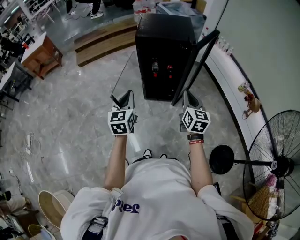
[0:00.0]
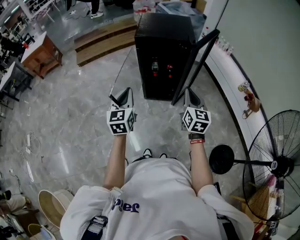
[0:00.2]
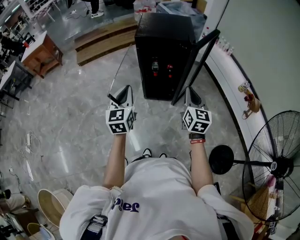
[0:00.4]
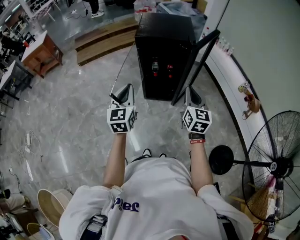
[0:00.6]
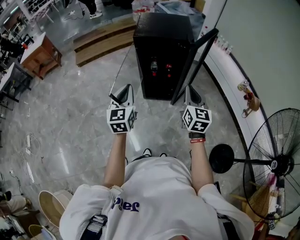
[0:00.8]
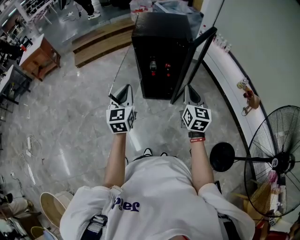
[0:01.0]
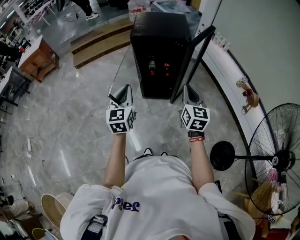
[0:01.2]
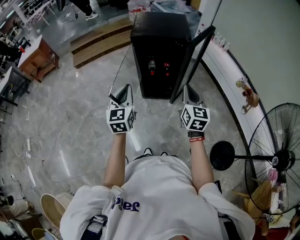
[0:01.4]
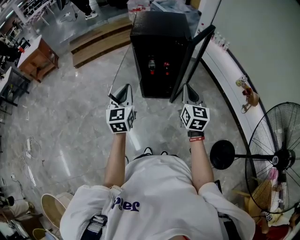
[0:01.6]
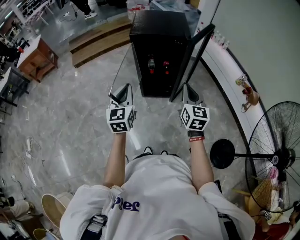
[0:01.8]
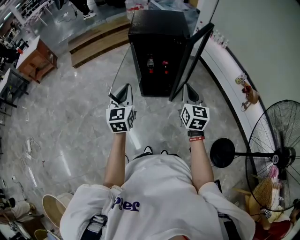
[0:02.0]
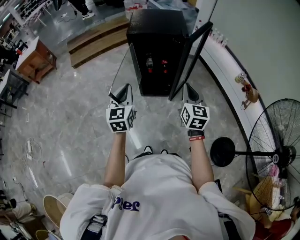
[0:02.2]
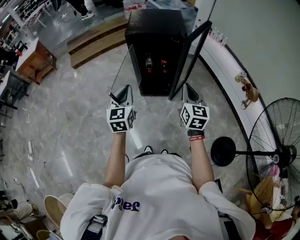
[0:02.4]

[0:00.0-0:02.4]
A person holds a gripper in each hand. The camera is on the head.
0:00.0 to 0:02.4: There are only small adjustments of the grippers.

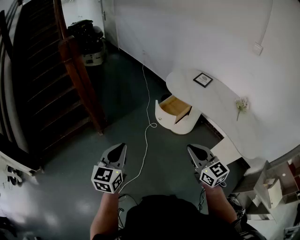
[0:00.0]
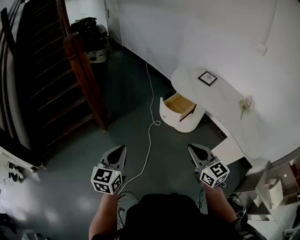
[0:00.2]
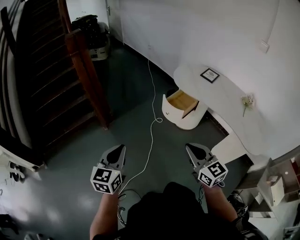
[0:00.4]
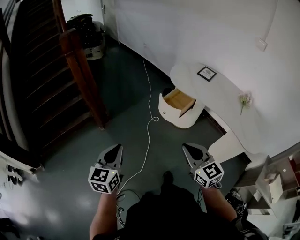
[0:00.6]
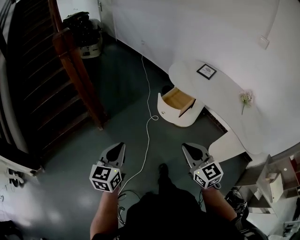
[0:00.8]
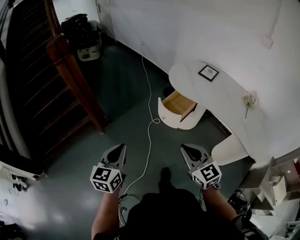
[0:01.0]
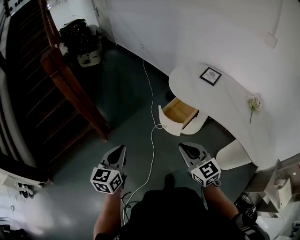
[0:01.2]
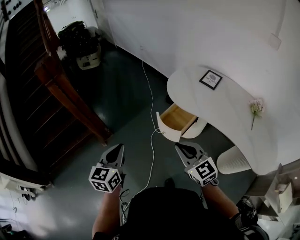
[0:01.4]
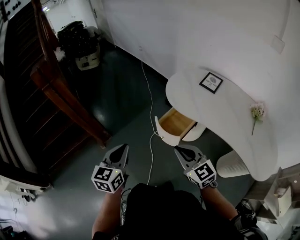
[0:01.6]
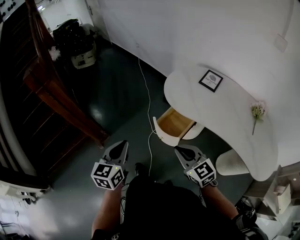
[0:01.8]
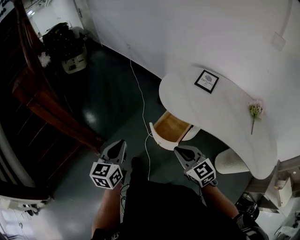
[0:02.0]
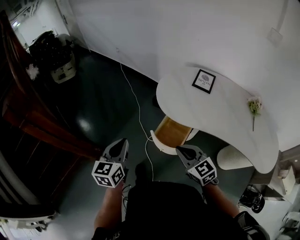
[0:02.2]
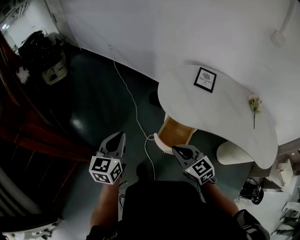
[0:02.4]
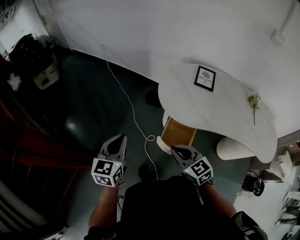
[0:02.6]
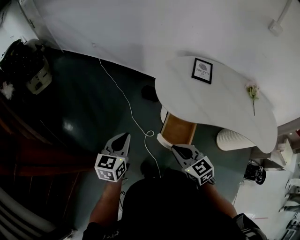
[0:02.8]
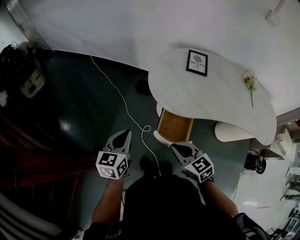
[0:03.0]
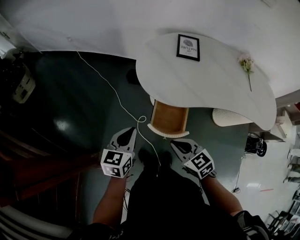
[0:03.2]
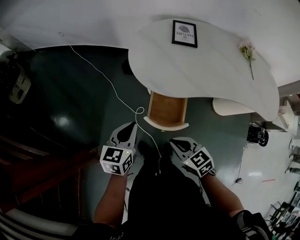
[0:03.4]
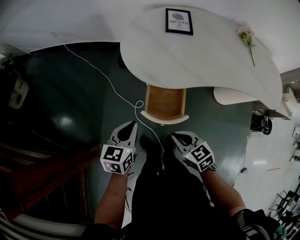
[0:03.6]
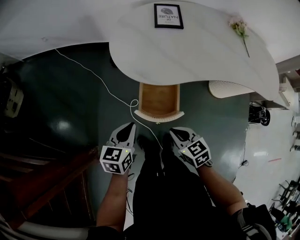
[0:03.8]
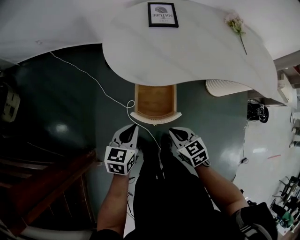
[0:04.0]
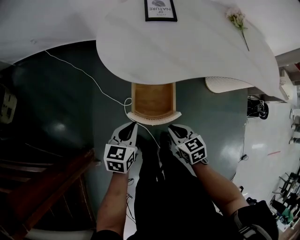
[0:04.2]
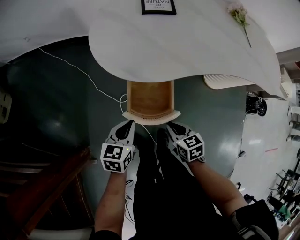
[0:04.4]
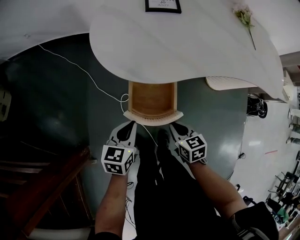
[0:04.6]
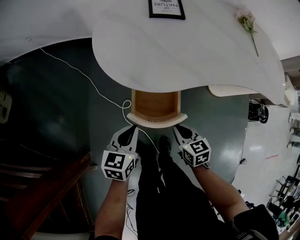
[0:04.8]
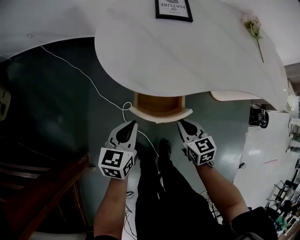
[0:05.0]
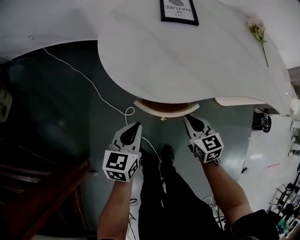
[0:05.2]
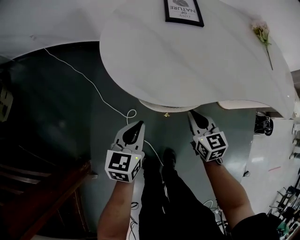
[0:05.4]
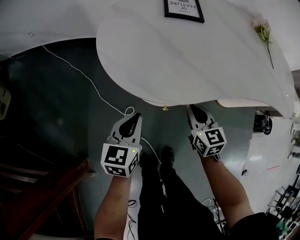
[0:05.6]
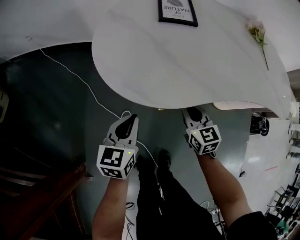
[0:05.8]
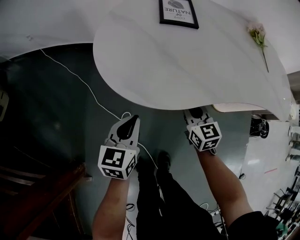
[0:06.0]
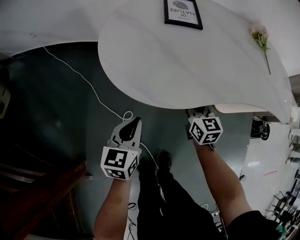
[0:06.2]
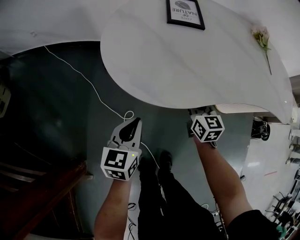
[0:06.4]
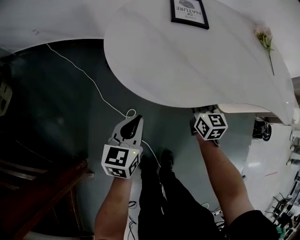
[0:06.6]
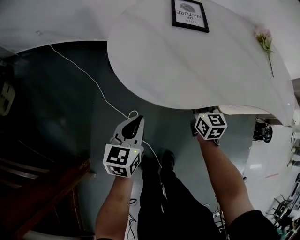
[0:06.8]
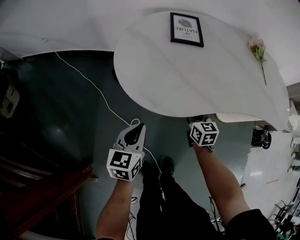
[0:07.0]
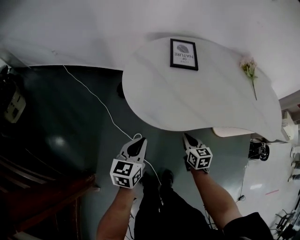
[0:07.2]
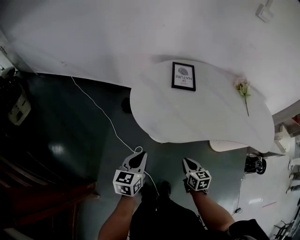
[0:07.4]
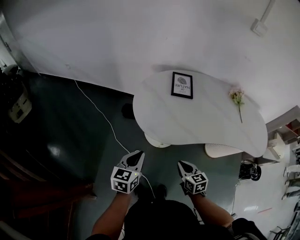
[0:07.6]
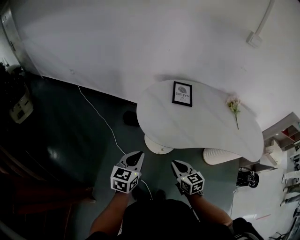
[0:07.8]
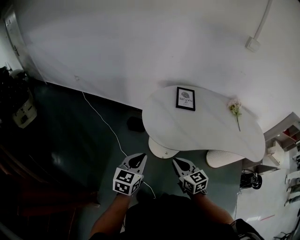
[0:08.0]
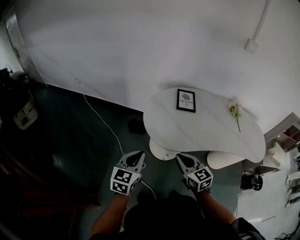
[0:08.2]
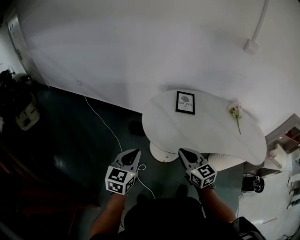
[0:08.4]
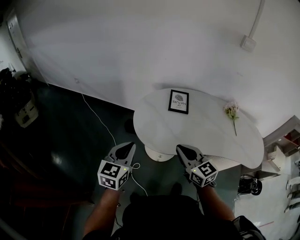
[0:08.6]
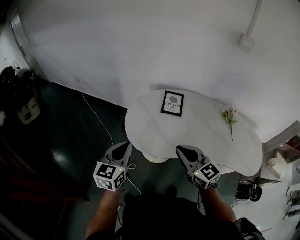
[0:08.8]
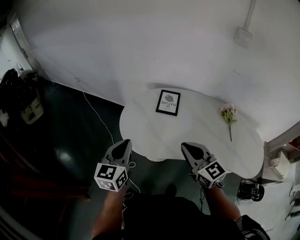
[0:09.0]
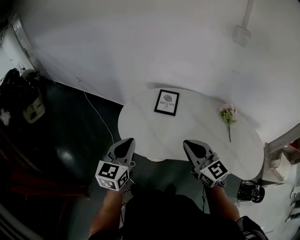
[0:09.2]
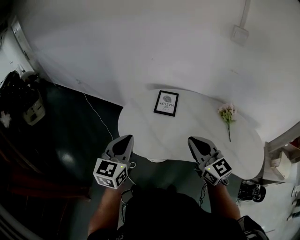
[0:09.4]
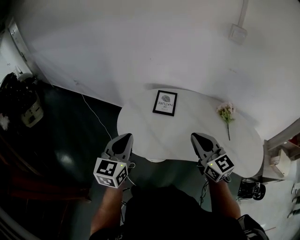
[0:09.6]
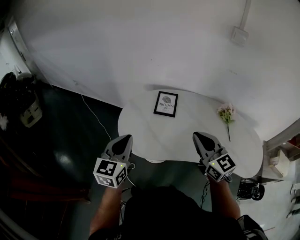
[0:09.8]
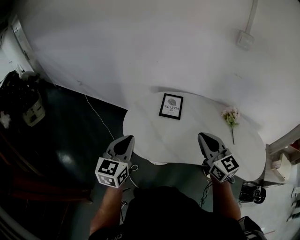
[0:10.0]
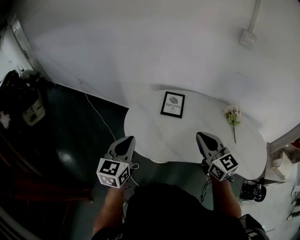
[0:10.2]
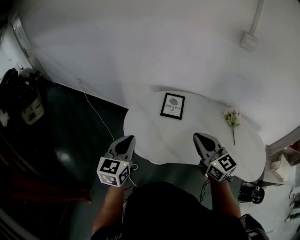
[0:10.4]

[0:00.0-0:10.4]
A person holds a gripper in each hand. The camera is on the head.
0:00.0 to 0:01.4: Both grippers move forward, about 25 cm.
0:01.4 to 0:03.0: The right gripper ends up some 30 cm from where it was, and rotates approximately 40 degrees. Meanwhile the left gripper ends up approximately 40 cm from where it was, and rotates some 30 degrees.
0:03.0 to 0:04.4: The grippers both shift downward and to the right by roughly 30 cm. The left gripper swivels about 30 degrees. The right gripper rotates approximately 40 degrees.
0:04.4 to 0:06.0: The left gripper is displaced forward by some 10 cm. Meanwhile the right gripper is displaced forward by some 20 cm, and changes its angle by some 30 degrees.
0:06.0 to 0:07.4: The right gripper goes some 15 cm backward and upward. The left gripper moves upward, some 15 cm.
0:07.4 to 0:09.0: The right gripper heads upward, covering approximately 35 cm, and tips its fingers upward by some 30 degrees. The left gripper shifts roughly 20 cm upward, and changes its angle by some 20 degrees.
0:09.0 to 0:10.4: The right gripper ends up about 5 cm from where it was.

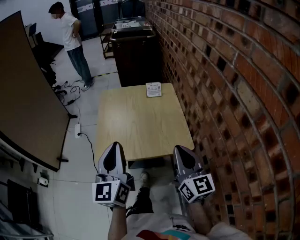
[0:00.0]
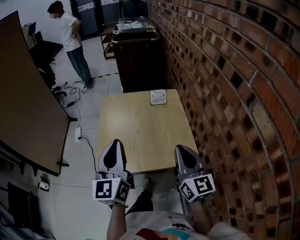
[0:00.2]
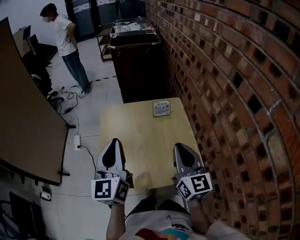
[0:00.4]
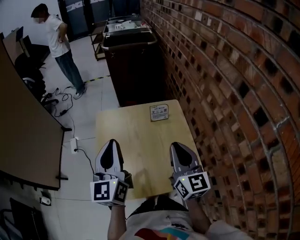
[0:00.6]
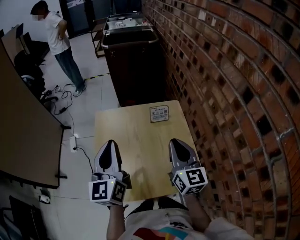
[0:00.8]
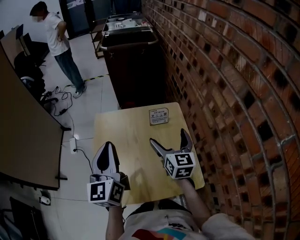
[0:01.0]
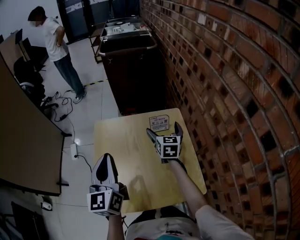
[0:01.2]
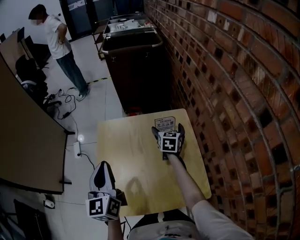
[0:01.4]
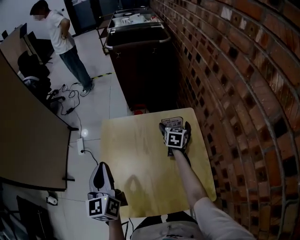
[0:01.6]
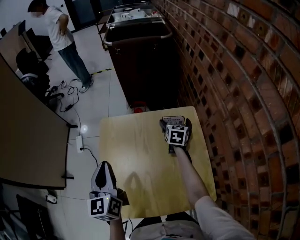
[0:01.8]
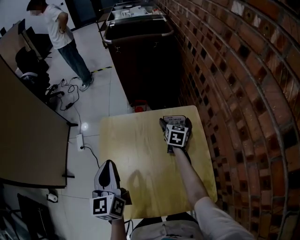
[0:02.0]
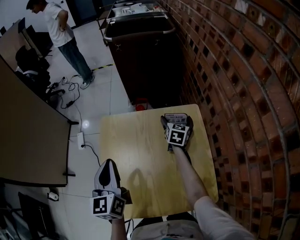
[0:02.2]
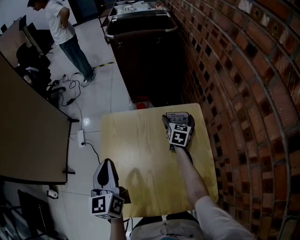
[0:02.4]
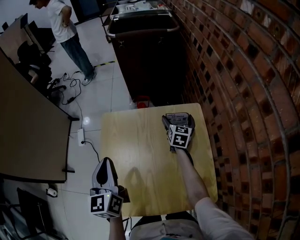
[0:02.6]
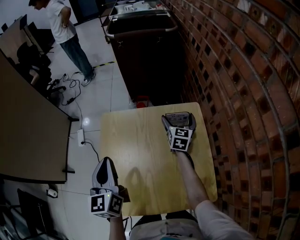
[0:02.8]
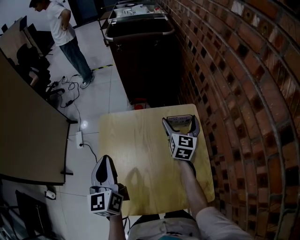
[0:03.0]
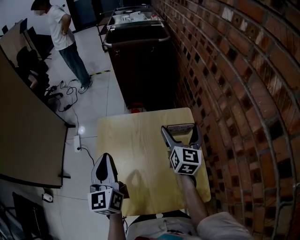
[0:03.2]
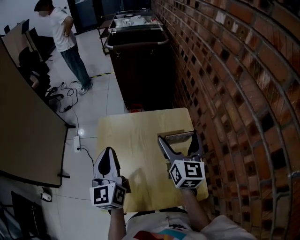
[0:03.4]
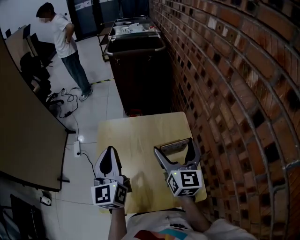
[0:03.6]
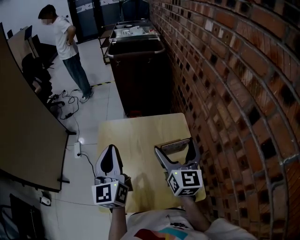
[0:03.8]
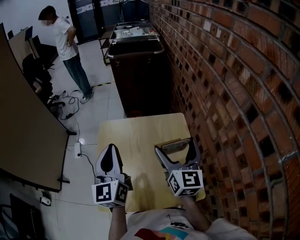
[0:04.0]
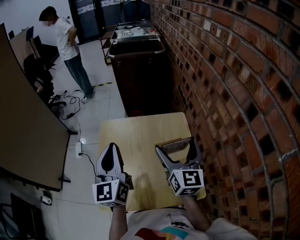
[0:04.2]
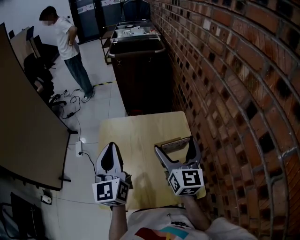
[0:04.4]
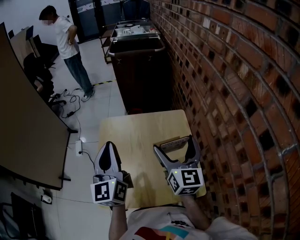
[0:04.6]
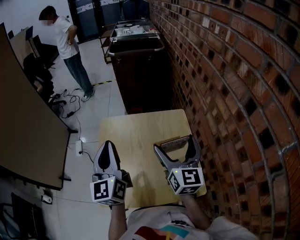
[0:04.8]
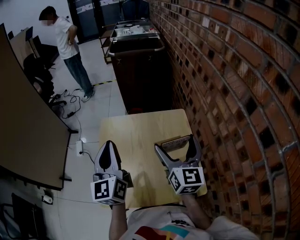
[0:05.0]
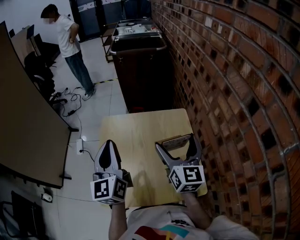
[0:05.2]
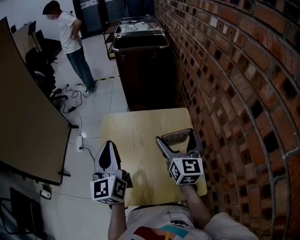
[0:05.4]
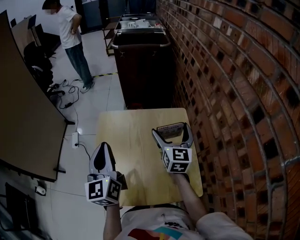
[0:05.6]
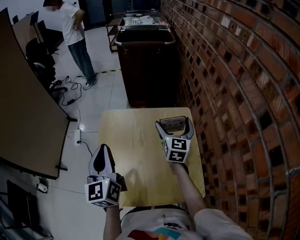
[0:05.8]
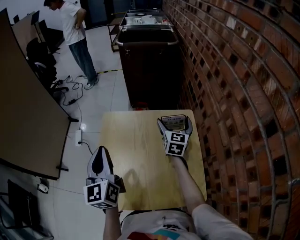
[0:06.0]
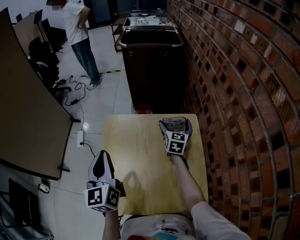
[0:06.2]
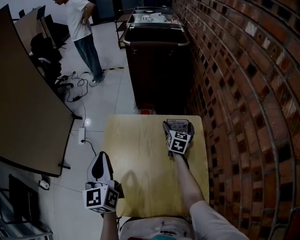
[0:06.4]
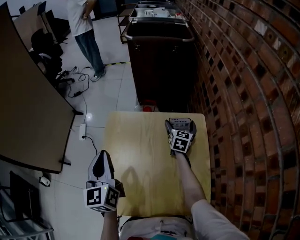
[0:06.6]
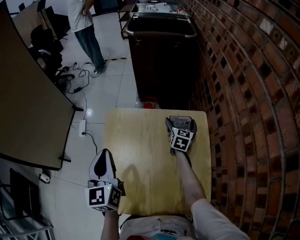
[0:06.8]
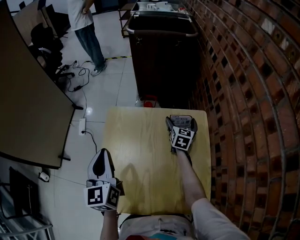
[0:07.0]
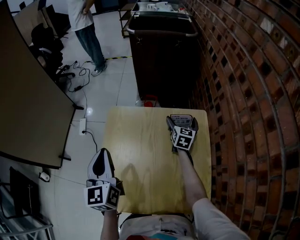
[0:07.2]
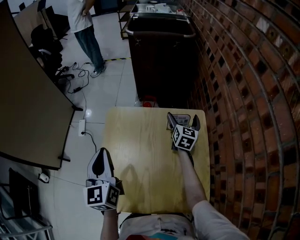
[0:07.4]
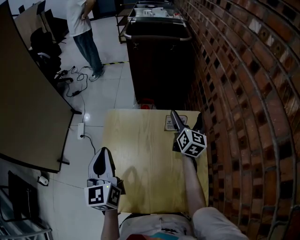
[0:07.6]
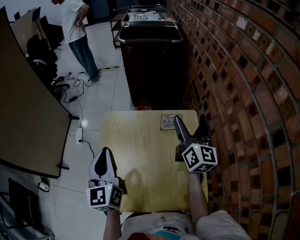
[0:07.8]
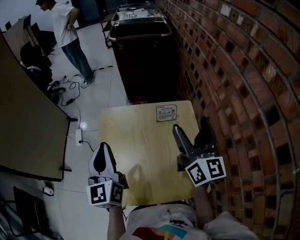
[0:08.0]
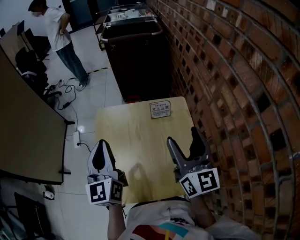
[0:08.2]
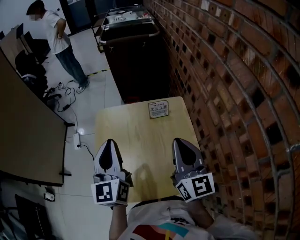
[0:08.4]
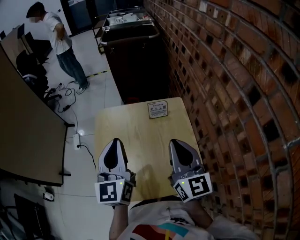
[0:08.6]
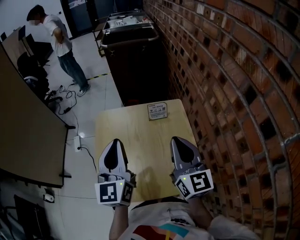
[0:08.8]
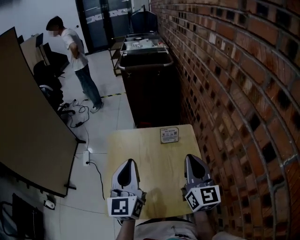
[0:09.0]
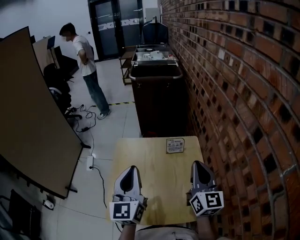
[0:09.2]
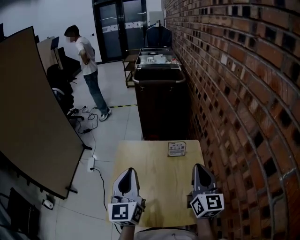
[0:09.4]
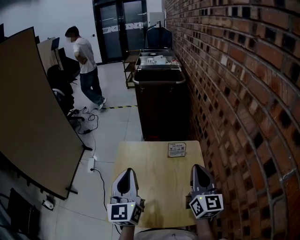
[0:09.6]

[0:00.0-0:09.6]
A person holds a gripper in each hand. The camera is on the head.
0:00.0 to 0:01.6: The right gripper heads forward, covering approximately 60 cm, tips its fingers downward by approximately 40 degrees, and opens up. Meanwhile the left gripper heads forward, covering some 30 cm.
0:01.6 to 0:03.2: The right gripper shifts approximately 20 cm upward and backward, and changes its angle by some 30 degrees.
0:03.2 to 0:04.8: The right gripper travels backward and upward by some 15 cm. Meanwhile the left gripper is displaced upward and backward by about 10 cm.
0:04.8 to 0:06.4: The left gripper moves downward, to the left and forward, some 10 cm; the right gripper moves forward and downward, about 35 cm, and rotates roughly 20 degrees.
0:06.4 to 0:08.0: The left gripper ends up about 5 cm from where it was. Meanwhile the right gripper moves upward and backward, approximately 35 cm, and points its fingers some 30 degrees further upward.
0:08.0 to 0:09.6: Both grippers travel together backward, approximately 5 cm. The right gripper closes its fingers.

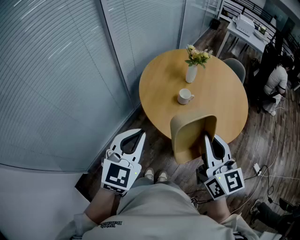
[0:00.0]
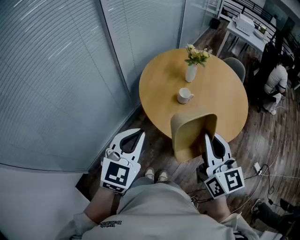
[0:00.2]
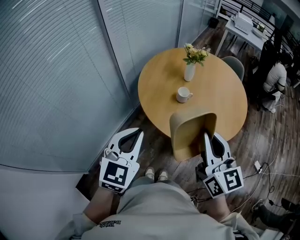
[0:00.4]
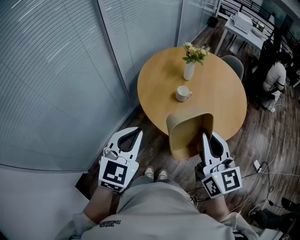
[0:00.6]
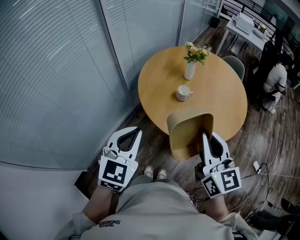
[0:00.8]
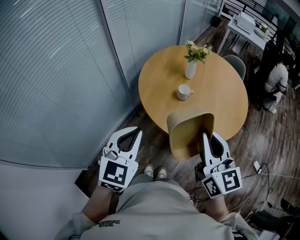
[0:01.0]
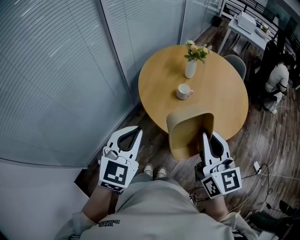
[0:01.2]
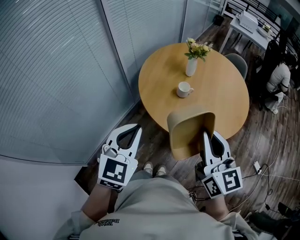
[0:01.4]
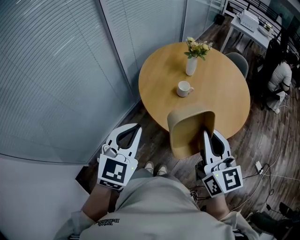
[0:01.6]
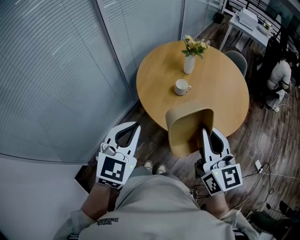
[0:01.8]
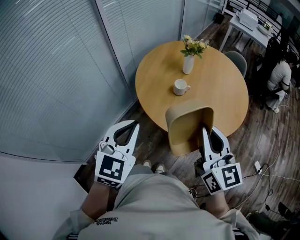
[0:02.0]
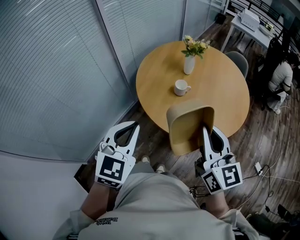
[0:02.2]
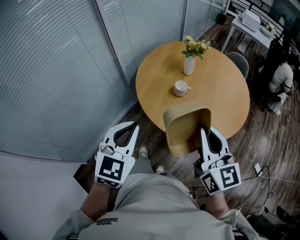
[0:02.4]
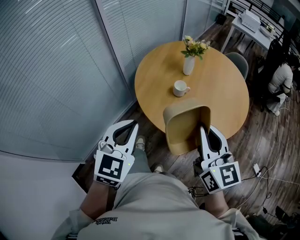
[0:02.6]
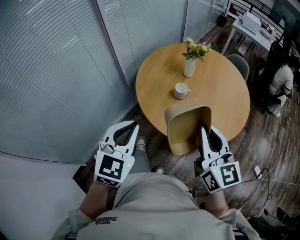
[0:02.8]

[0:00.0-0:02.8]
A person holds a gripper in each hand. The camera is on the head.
0:00.0 to 0:02.8: The grippers move only a little.
